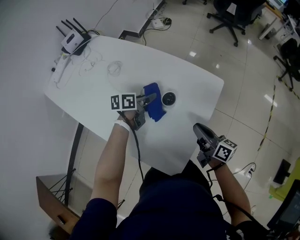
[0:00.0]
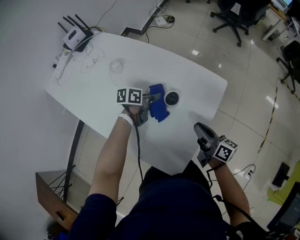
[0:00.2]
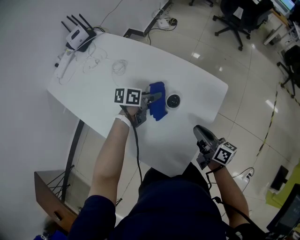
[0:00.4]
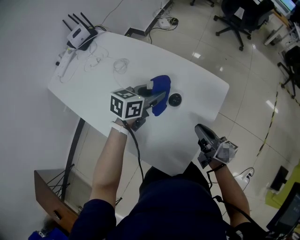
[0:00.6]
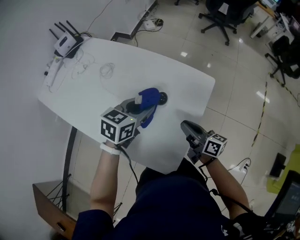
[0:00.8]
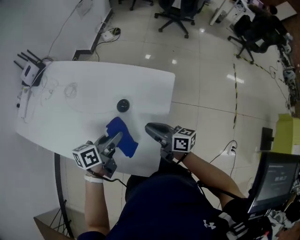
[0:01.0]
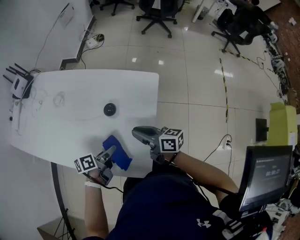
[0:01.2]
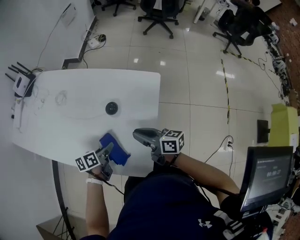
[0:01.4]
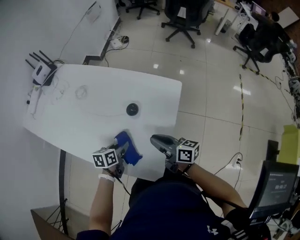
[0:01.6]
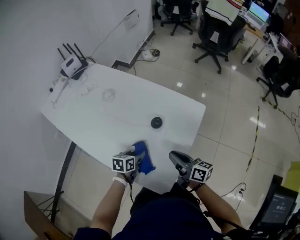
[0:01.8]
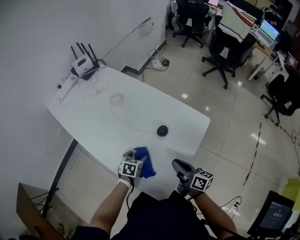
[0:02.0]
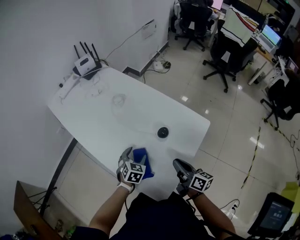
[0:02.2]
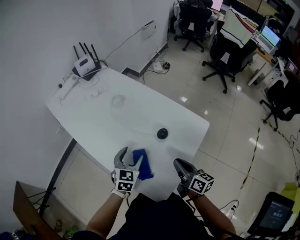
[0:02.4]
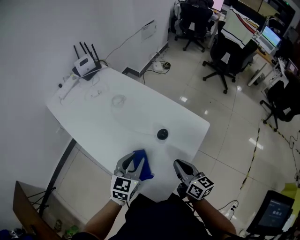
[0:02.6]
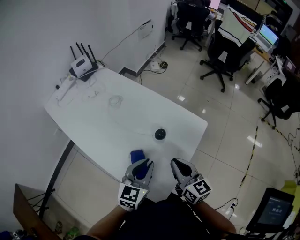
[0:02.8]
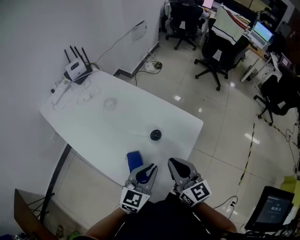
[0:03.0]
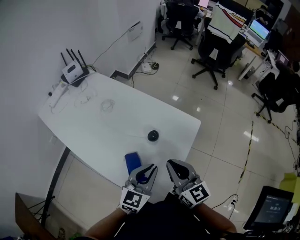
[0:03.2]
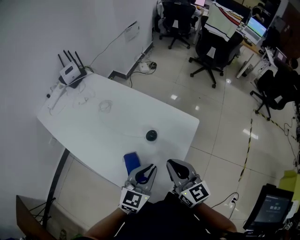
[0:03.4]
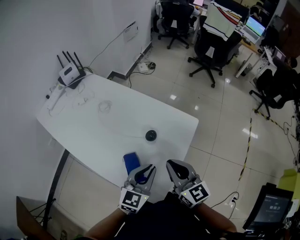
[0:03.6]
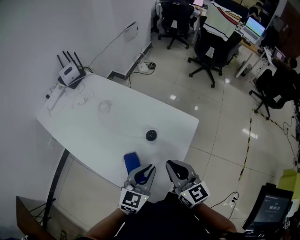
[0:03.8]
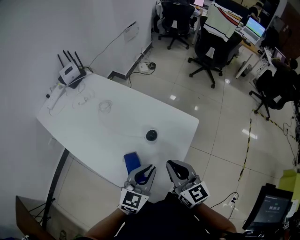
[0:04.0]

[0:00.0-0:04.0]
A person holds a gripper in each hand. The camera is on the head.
0:00.0 to 0:01.4: The right gripper travels to the left by some 5 cm. Meanwhile the left gripper travels backward by about 15 cm.
0:01.4 to 0:02.6: The right gripper travels upward by roughly 5 cm. The left gripper goes some 15 cm upward, swivels roughly 60 degrees, and opens, then closes once more.
0:02.6 to 0:04.0: The left gripper is displaced to the right by approximately 10 cm, while the right gripper travels upward by approximately 10 cm, and rotates roughly 30 degrees.

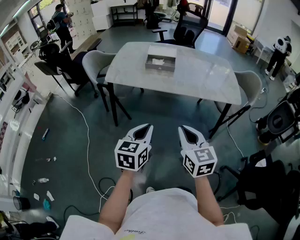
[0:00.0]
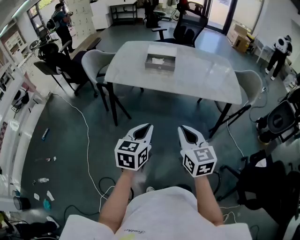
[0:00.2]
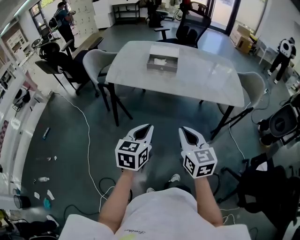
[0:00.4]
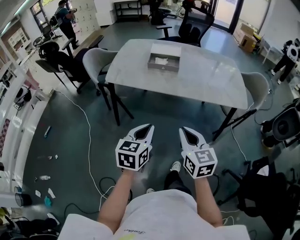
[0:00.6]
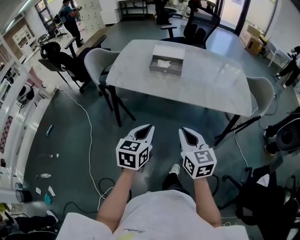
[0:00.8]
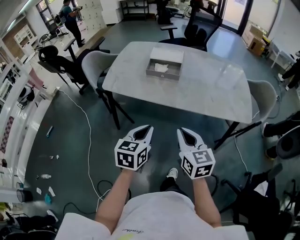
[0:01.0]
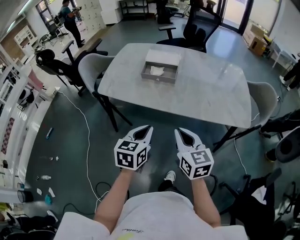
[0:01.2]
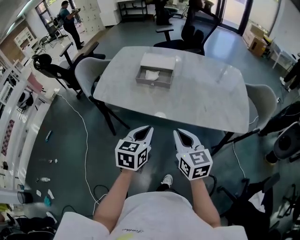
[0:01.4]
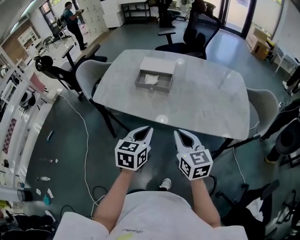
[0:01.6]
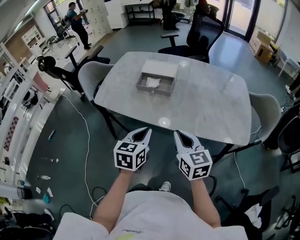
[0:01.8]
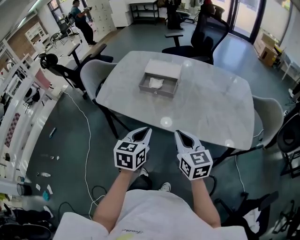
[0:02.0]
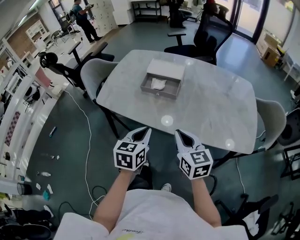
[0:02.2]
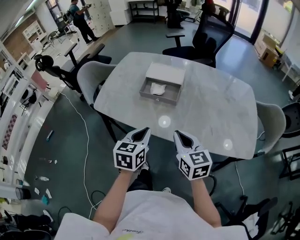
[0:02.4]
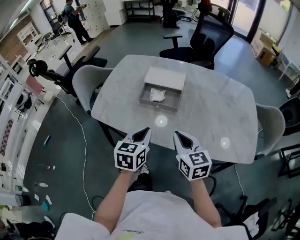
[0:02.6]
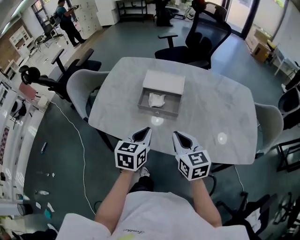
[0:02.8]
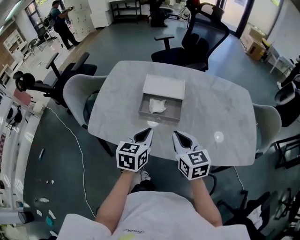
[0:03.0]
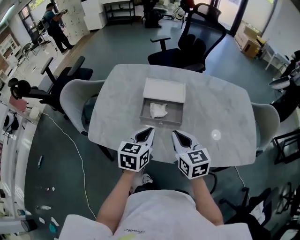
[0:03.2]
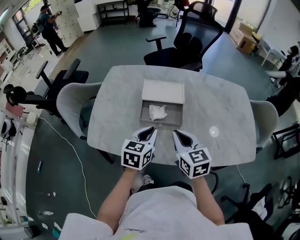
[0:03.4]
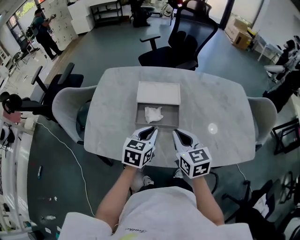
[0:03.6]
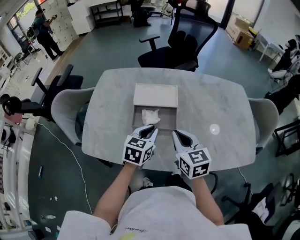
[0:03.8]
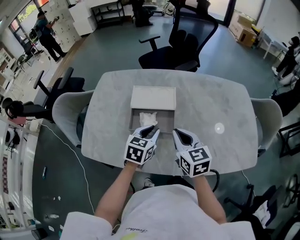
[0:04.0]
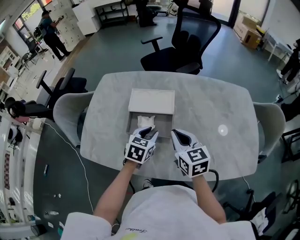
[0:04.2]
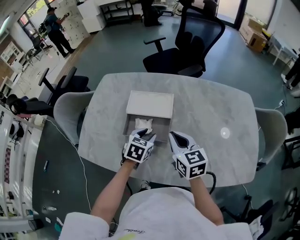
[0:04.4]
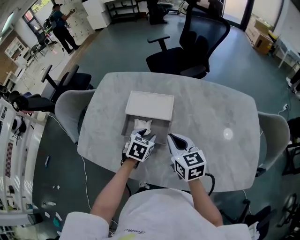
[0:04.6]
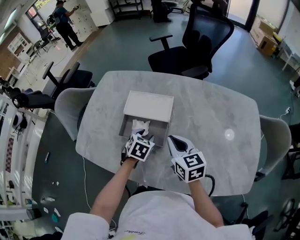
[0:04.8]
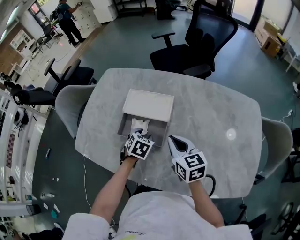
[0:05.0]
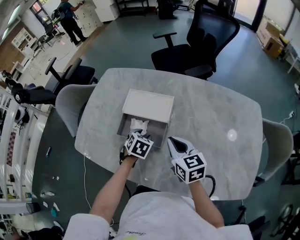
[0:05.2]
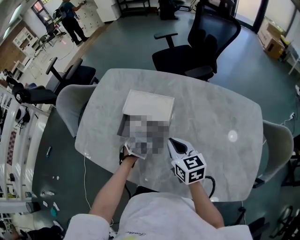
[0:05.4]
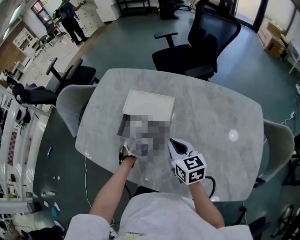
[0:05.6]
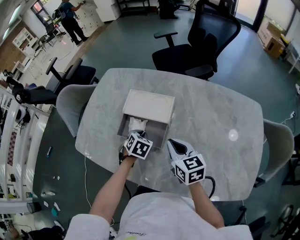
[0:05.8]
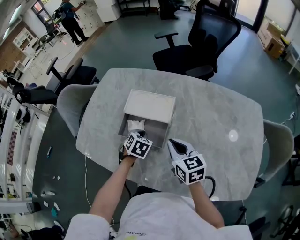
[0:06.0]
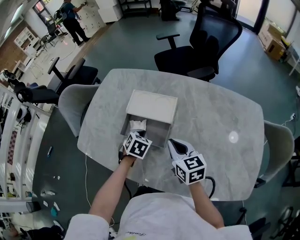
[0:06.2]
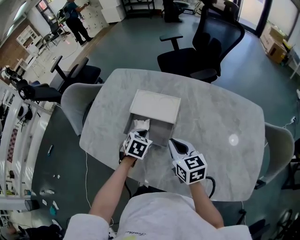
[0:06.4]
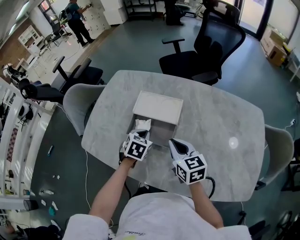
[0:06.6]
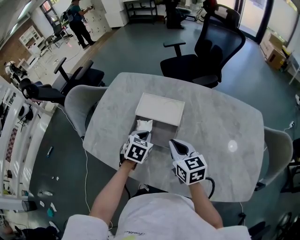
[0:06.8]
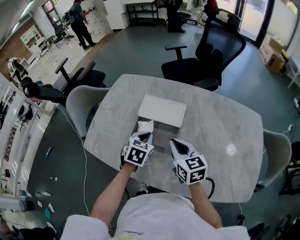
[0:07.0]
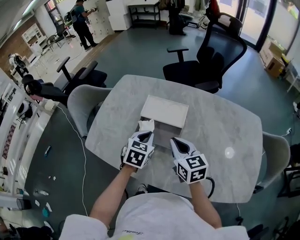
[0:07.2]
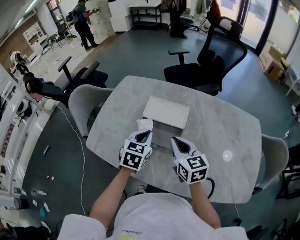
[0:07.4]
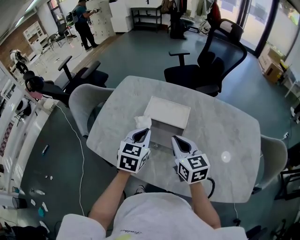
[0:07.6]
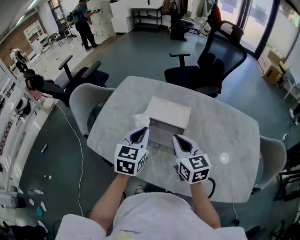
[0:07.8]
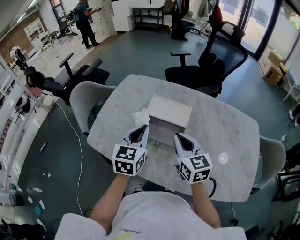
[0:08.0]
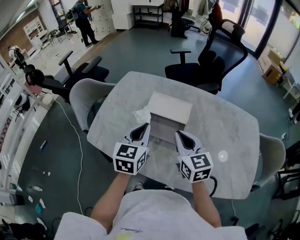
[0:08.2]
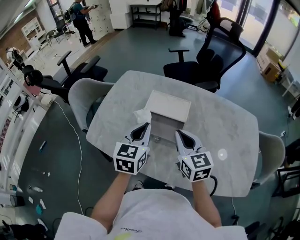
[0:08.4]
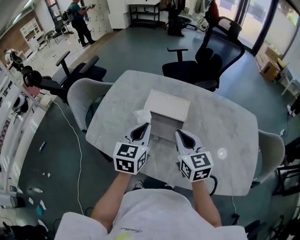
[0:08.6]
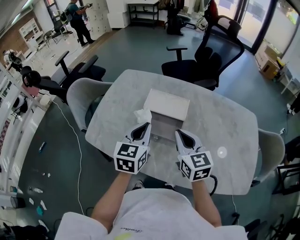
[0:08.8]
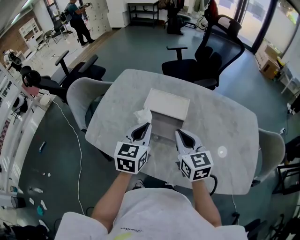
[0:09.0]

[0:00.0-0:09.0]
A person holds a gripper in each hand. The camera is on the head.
0:00.0 to 0:01.6: Both grippers travel together forward and to the right, about 25 cm.
0:01.6 to 0:03.0: Both grippers travel together forward, about 25 cm.
0:03.0 to 0:04.4: The left gripper moves forward, downward and to the right, some 20 cm, turns by some 20 degrees, and opens, while the right gripper goes roughly 15 cm forward and to the right.
0:04.4 to 0:06.0: The left gripper shifts about 5 cm downward, swivels approximately 20 degrees, and closes up; the right gripper ends up roughly 5 cm from where it was.
0:06.0 to 0:07.6: The right gripper is displaced upward and to the left by about 10 cm, while the left gripper is displaced upward by some 15 cm, and angles its fingers upward, by roughly 30 degrees.
0:07.6 to 0:09.0: The grippers stay close to where they were, moving slightly.

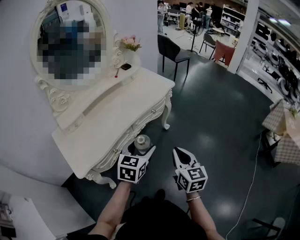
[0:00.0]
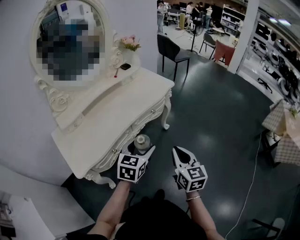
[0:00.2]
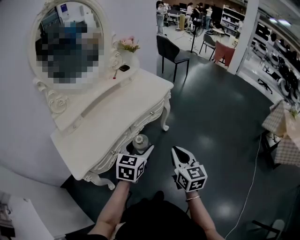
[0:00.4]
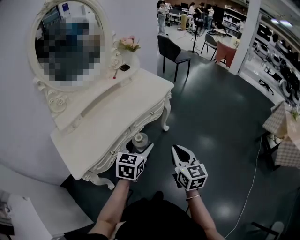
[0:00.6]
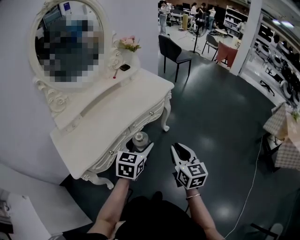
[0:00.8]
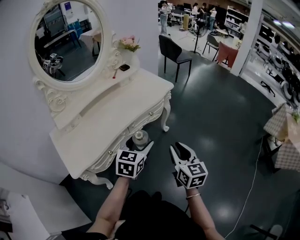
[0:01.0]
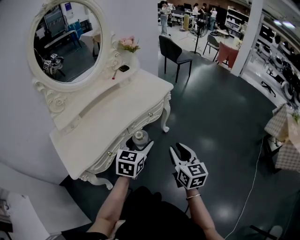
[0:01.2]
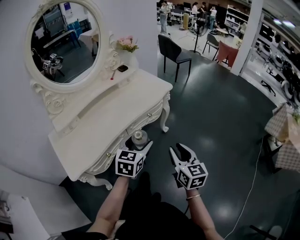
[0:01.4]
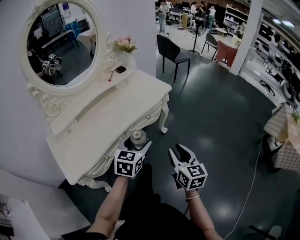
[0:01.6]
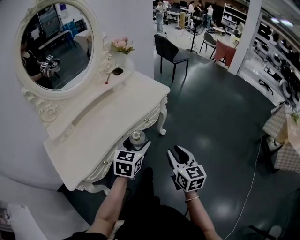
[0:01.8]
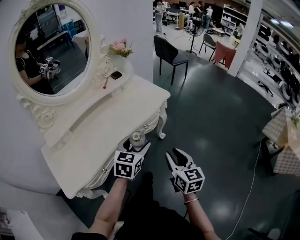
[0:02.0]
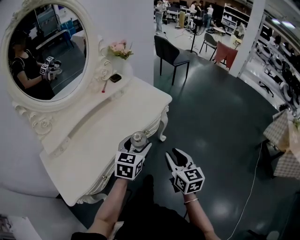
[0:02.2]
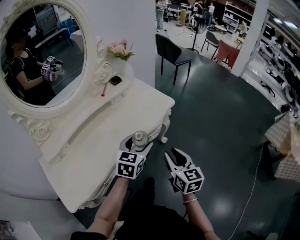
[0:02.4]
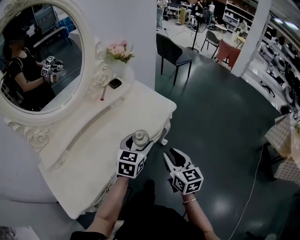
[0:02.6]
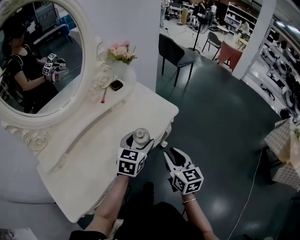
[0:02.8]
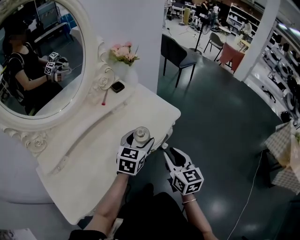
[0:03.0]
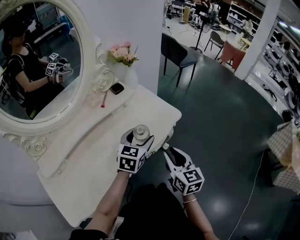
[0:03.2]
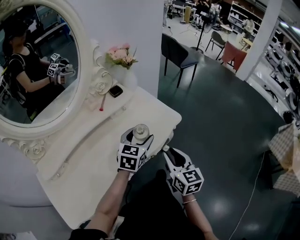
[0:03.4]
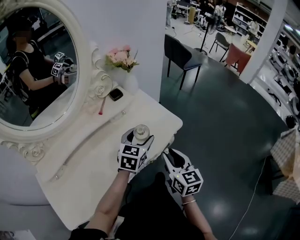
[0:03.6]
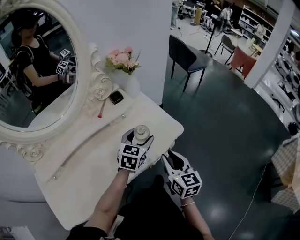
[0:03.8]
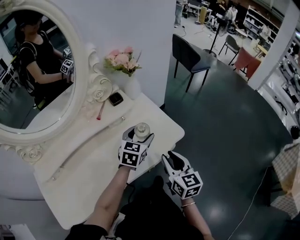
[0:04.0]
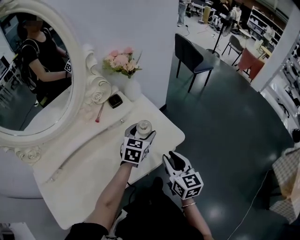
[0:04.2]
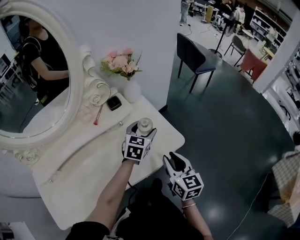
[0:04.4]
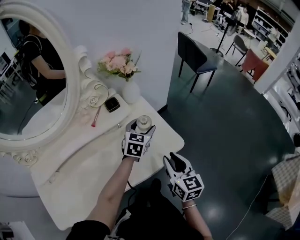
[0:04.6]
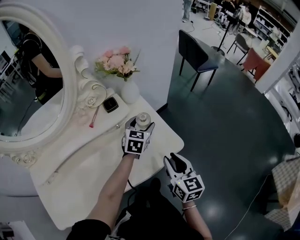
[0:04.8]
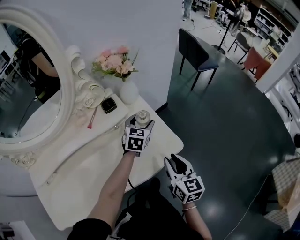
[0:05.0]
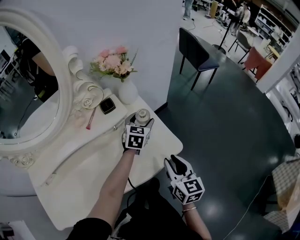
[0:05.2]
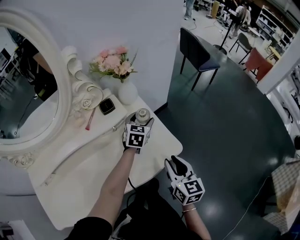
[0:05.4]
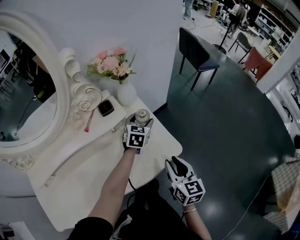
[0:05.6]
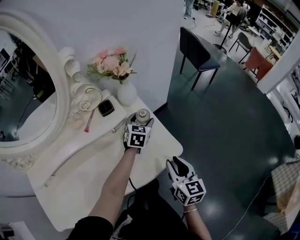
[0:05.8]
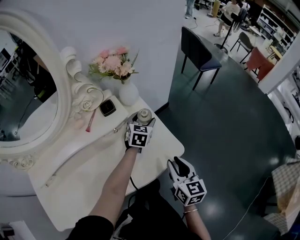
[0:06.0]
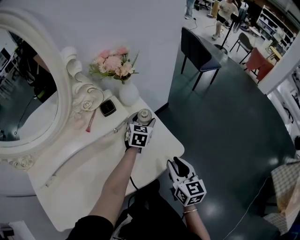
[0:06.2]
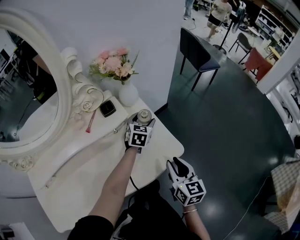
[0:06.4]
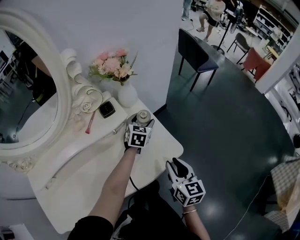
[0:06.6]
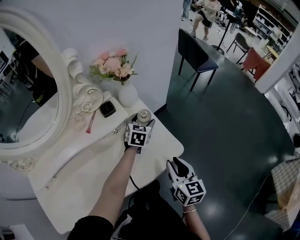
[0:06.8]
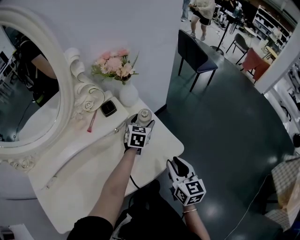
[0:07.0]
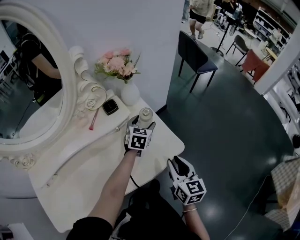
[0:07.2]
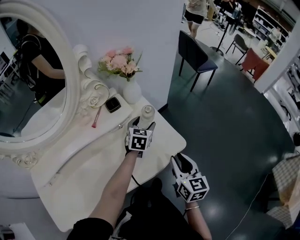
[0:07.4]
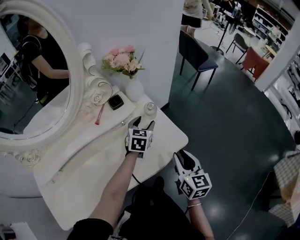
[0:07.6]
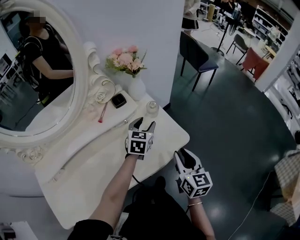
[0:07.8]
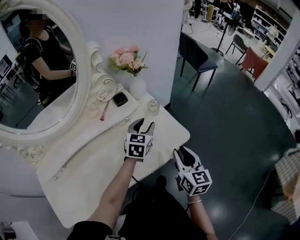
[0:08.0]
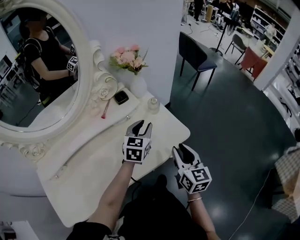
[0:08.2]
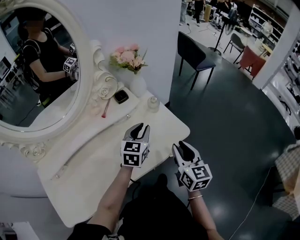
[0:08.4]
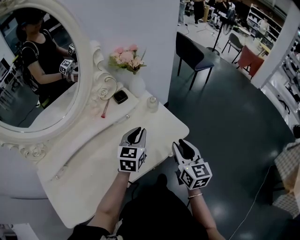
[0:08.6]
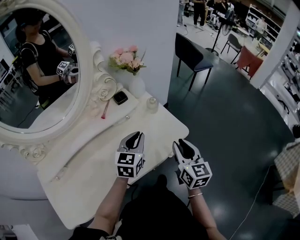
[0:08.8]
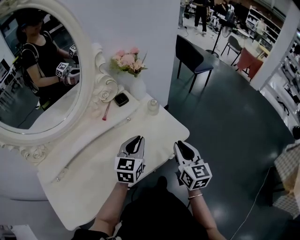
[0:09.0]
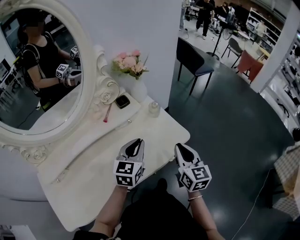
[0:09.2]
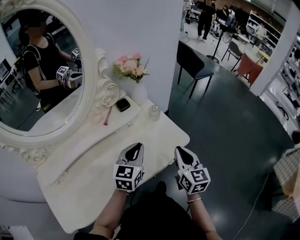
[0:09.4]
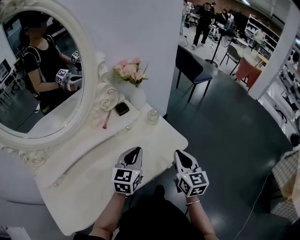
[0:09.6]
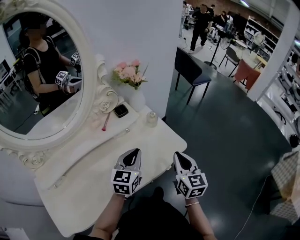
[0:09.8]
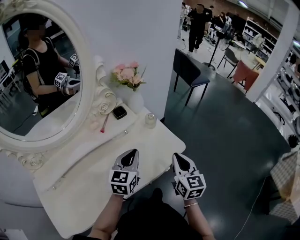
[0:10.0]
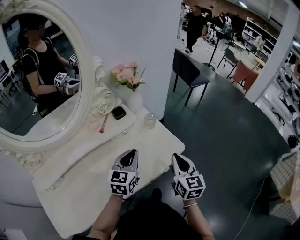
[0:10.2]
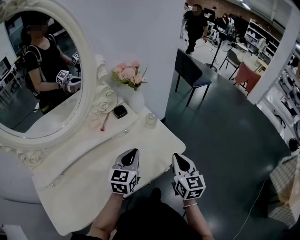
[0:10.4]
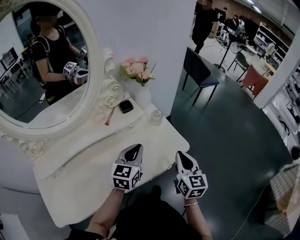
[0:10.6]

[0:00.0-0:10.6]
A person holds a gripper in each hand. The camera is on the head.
0:00.0 to 0:01.6: Both grippers move forward, approximately 10 cm. The right gripper opens up.
0:01.6 to 0:03.0: Both grippers move forward, some 25 cm.
0:03.0 to 0:04.6: The two grippers go about 20 cm forward.
0:04.6 to 0:06.0: The left gripper goes approximately 10 cm forward.
0:06.0 to 0:07.6: The left gripper moves backward, about 5 cm.
0:07.6 to 0:09.0: The left gripper shifts approximately 20 cm backward and upward, and closes its fingers.
0:09.0 to 0:10.6: The grippers stay close to where they were, moving slightly.
